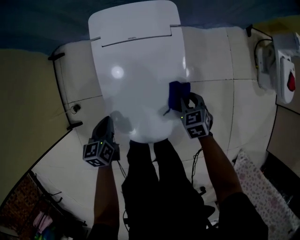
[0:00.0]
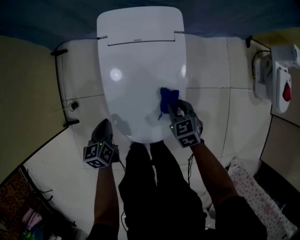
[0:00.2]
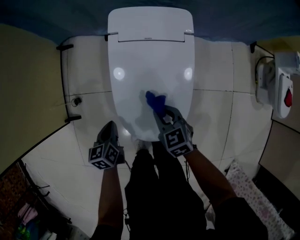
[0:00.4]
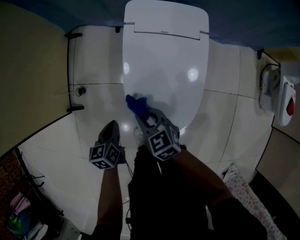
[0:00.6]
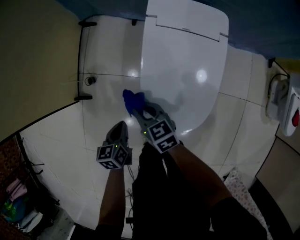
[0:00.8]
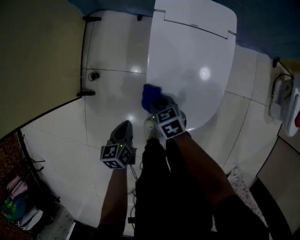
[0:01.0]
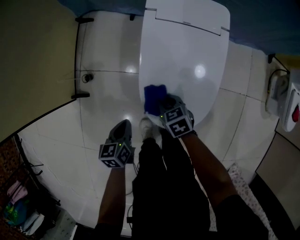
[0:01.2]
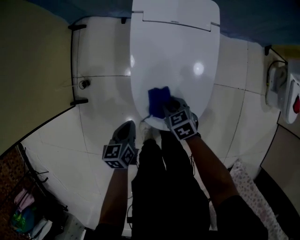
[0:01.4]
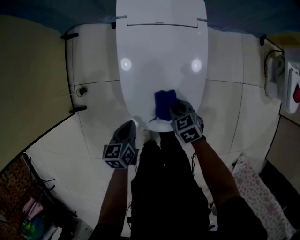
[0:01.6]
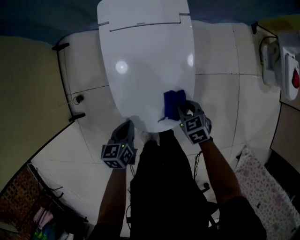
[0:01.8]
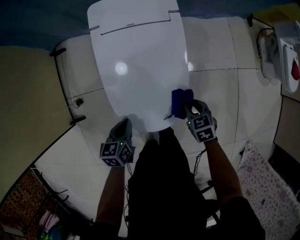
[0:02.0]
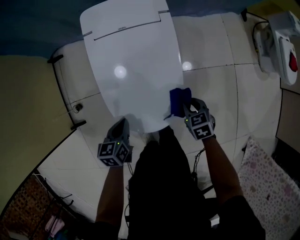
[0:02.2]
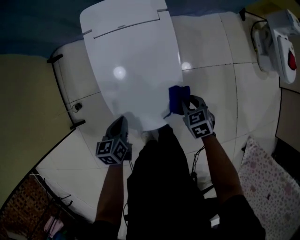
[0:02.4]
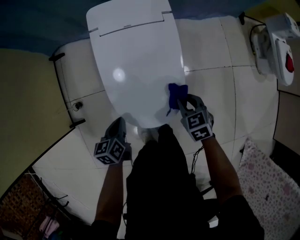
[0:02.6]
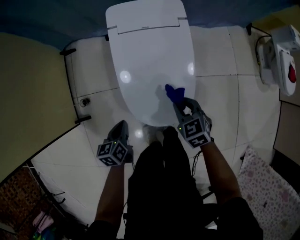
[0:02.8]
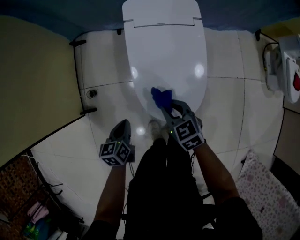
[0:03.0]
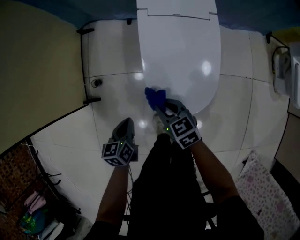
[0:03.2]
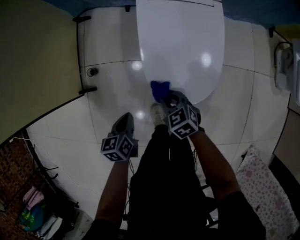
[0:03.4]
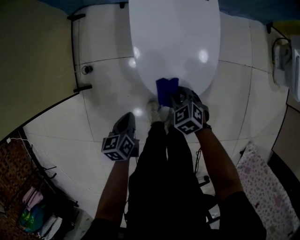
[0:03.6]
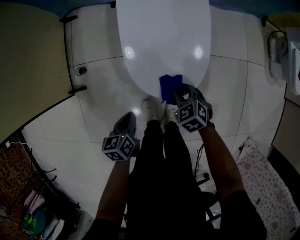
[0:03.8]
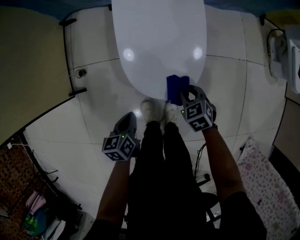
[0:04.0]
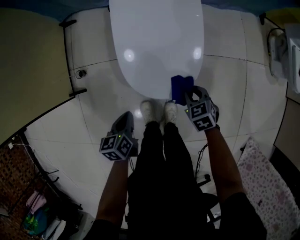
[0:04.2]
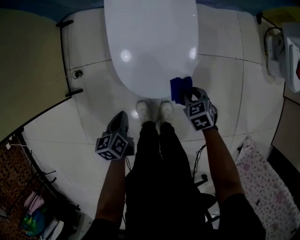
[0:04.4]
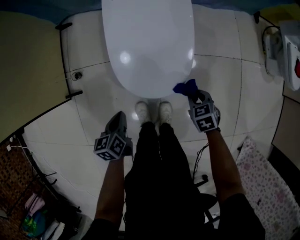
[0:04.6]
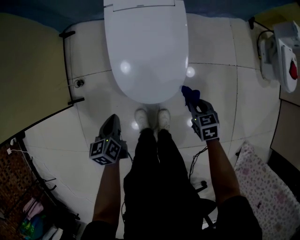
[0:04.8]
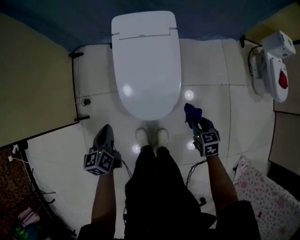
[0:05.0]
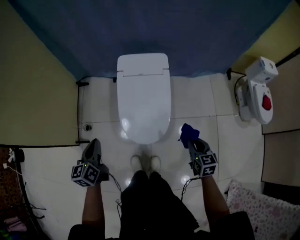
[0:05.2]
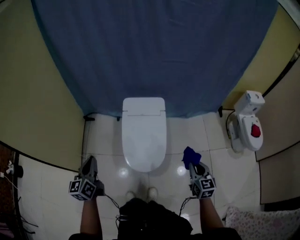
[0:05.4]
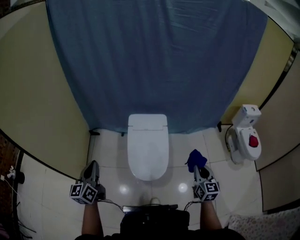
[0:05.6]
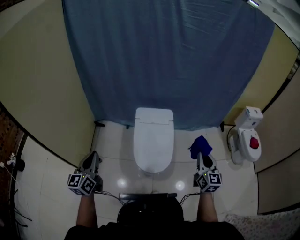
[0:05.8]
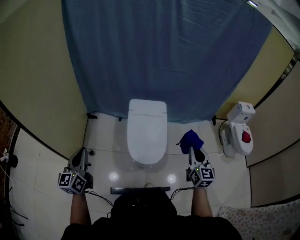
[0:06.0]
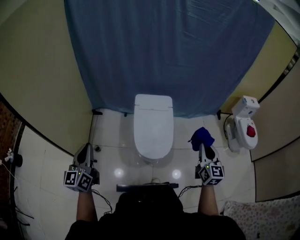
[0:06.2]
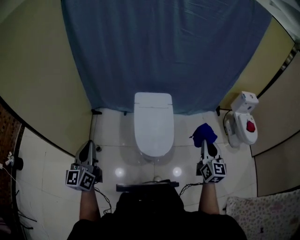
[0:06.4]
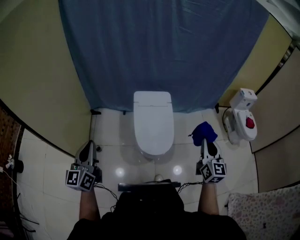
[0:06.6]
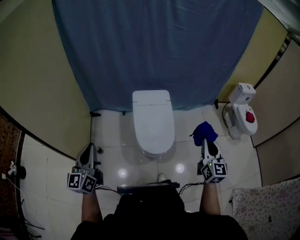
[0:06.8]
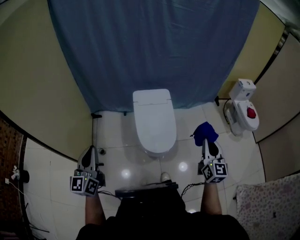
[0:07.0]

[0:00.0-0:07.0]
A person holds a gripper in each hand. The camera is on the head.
0:00.0 to 0:01.4: The right gripper moves about 10 cm upward and comes back, and changes its angle by roughly 20 degrees; the left gripper moves approximately 10 cm.
0:01.4 to 0:02.8: The right gripper shifts about 15 cm upward and to the right, while the left gripper travels to the right and back again, about 10 cm each way.
0:02.8 to 0:04.2: The left gripper travels backward by some 10 cm. Meanwhile the right gripper shifts about 15 cm downward and backward, and travels to the left and back again, approximately 20 cm each way.
0:04.2 to 0:05.6: Both grippers move upward, some 50 cm. The right gripper tilts its fingers approximately 50 degrees upward; the left gripper tips its fingers upward by some 50 degrees.
0:05.6 to 0:07.0: The right gripper goes some 15 cm backward, to the left and upward. The left gripper shifts approximately 15 cm to the left and backward.

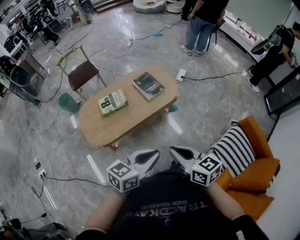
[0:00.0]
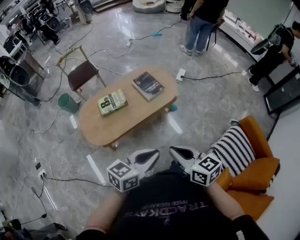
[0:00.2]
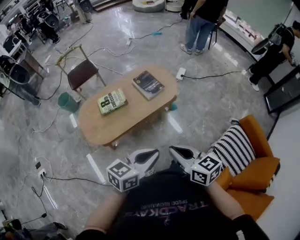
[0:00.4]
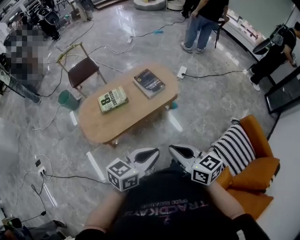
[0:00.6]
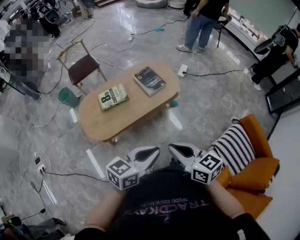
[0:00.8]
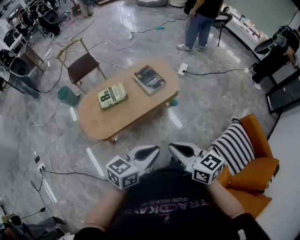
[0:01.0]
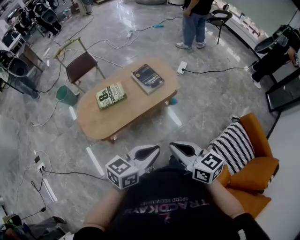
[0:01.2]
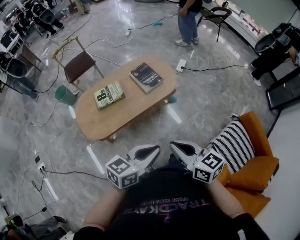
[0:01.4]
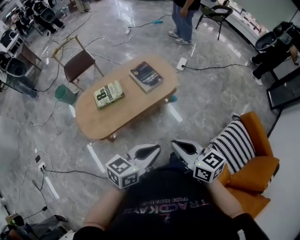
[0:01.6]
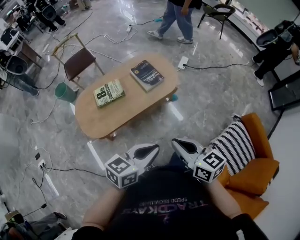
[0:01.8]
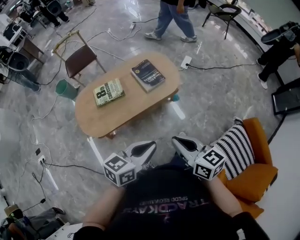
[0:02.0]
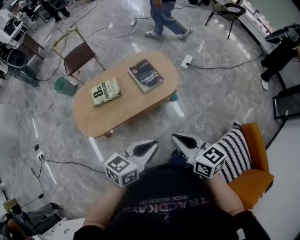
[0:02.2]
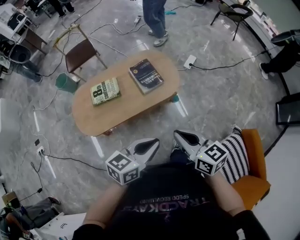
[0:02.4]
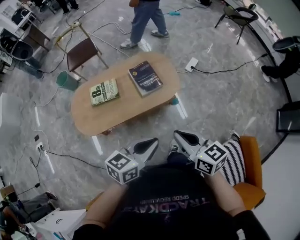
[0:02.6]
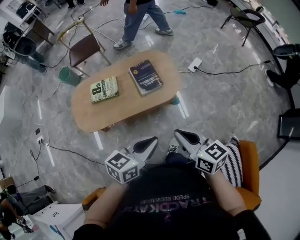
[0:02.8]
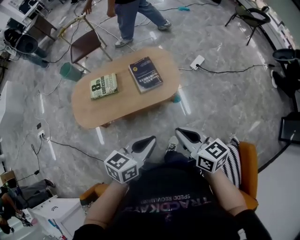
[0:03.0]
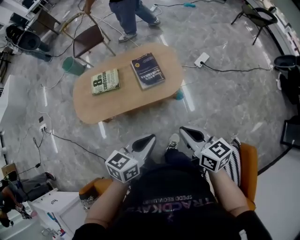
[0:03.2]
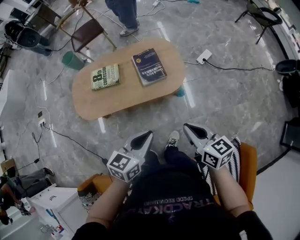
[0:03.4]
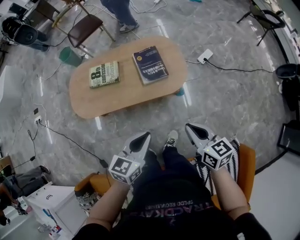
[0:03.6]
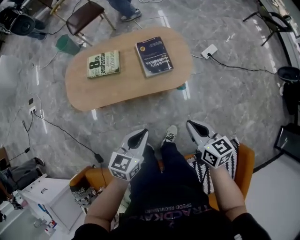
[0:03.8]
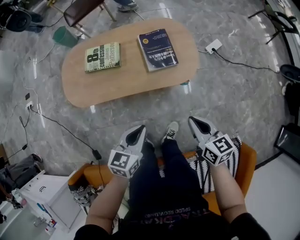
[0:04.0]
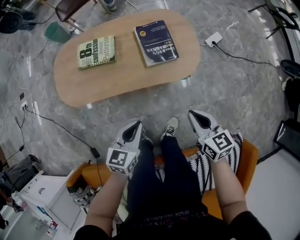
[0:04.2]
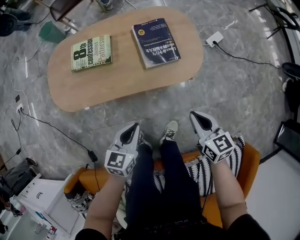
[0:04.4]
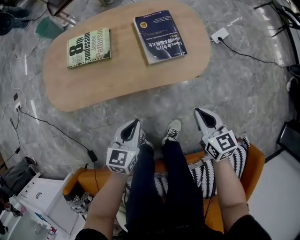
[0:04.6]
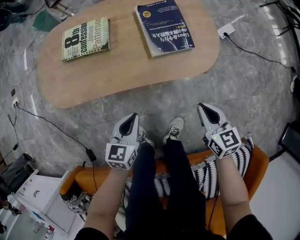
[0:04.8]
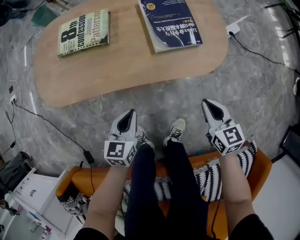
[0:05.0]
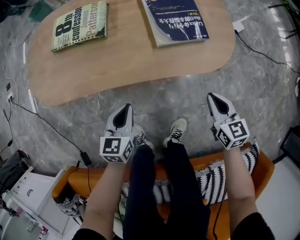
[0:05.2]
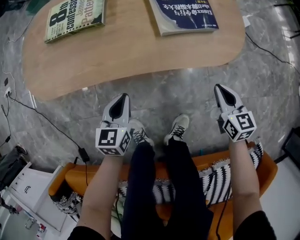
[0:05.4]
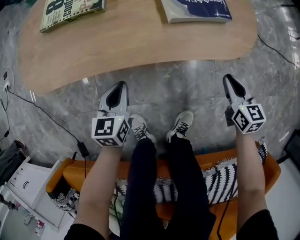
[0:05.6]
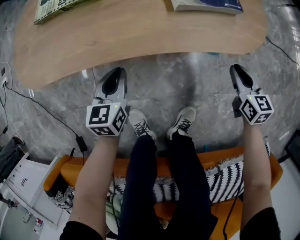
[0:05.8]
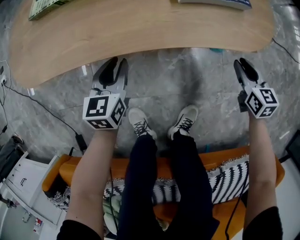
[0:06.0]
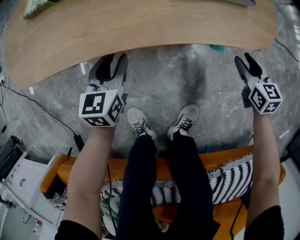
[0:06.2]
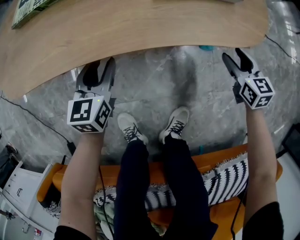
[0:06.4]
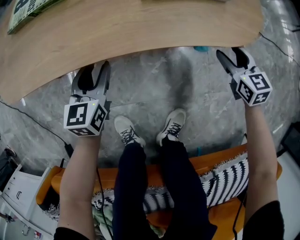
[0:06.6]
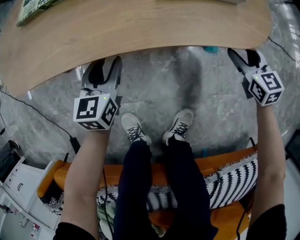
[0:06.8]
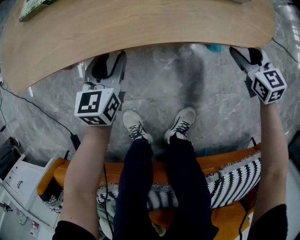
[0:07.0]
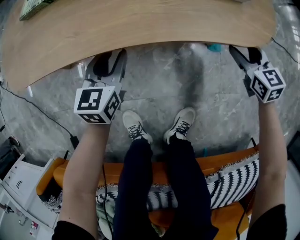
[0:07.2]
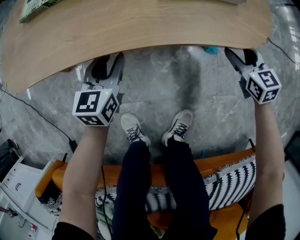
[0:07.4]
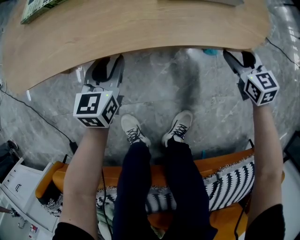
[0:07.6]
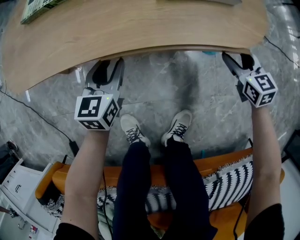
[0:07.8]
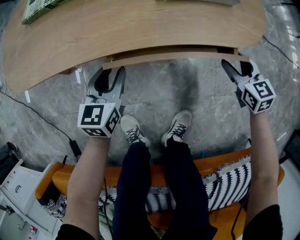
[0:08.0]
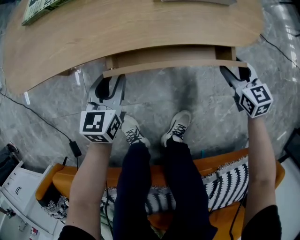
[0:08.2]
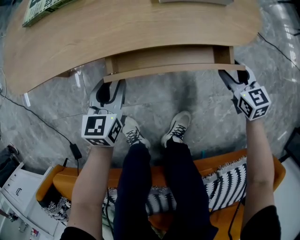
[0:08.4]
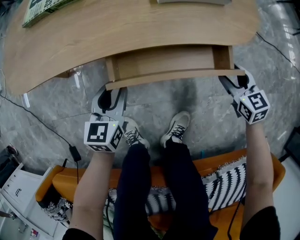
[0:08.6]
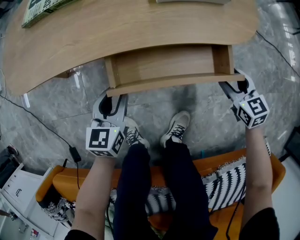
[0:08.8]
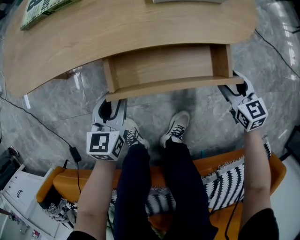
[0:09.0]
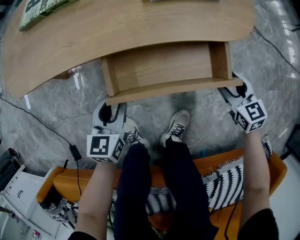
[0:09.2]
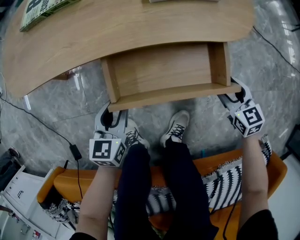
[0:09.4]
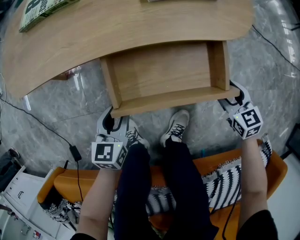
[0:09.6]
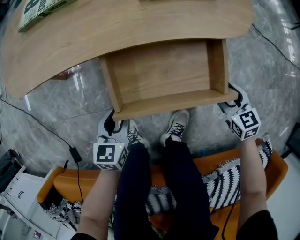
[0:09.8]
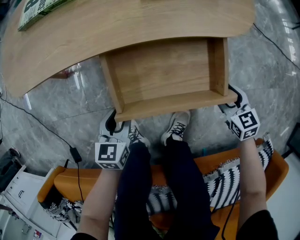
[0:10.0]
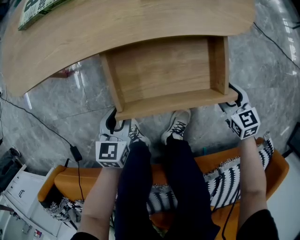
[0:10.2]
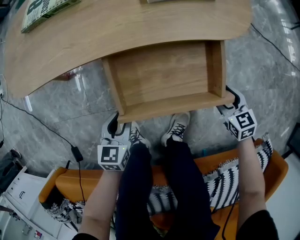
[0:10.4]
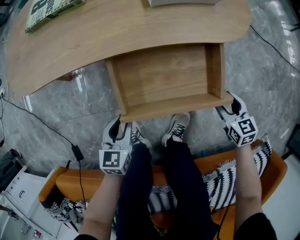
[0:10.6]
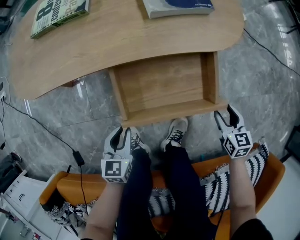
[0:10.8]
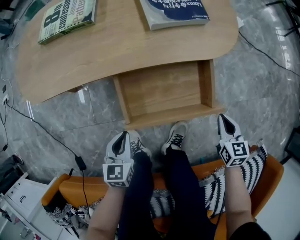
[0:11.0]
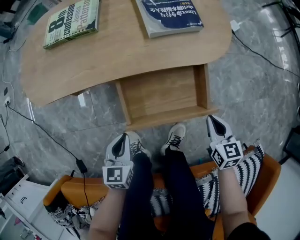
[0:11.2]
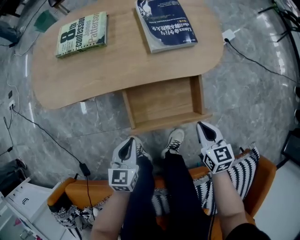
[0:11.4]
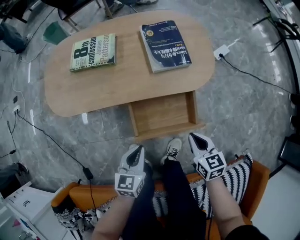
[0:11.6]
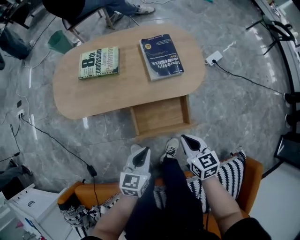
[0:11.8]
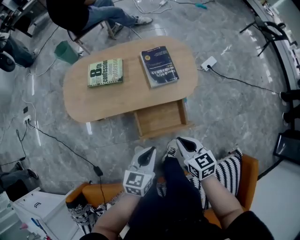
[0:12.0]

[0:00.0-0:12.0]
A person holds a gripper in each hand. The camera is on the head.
0:00.0 to 0:01.6: The right gripper ends up approximately 5 cm from where it was.
0:01.6 to 0:03.0: The two grippers go approximately 25 cm forward and to the right. The left gripper rotates some 20 degrees.
0:03.0 to 0:04.4: The left gripper shifts some 30 cm downward and to the left, and rotates about 20 degrees, while the right gripper travels downward by about 30 cm.
0:04.4 to 0:06.0: Both grippers move downward, approximately 35 cm. The right gripper opens; the left gripper opens its fingers.
0:06.0 to 0:07.6: The right gripper opens.
0:07.6 to 0:09.0: Both grippers move backward, about 10 cm.
0:09.0 to 0:10.4: Both grippers move backward, some 10 cm.
0:10.4 to 0:12.0: The two grippers go some 40 cm upward. The right gripper closes up. The left gripper closes its fingers.

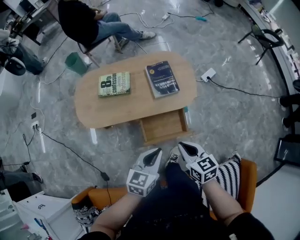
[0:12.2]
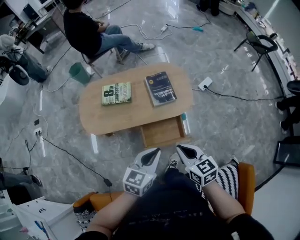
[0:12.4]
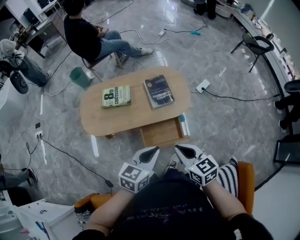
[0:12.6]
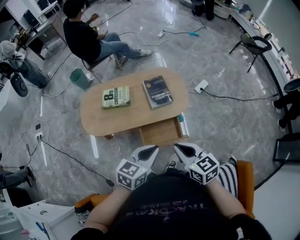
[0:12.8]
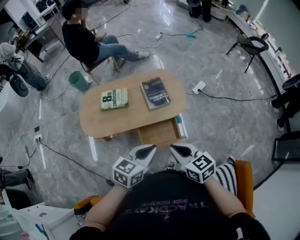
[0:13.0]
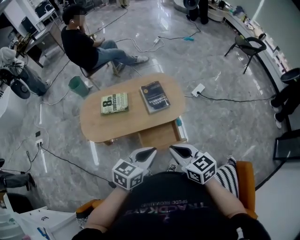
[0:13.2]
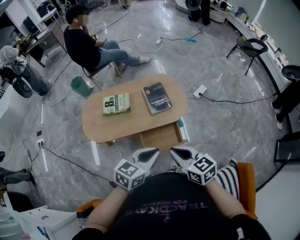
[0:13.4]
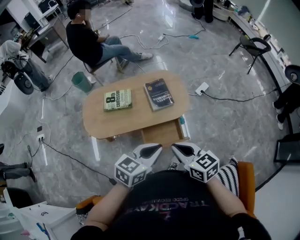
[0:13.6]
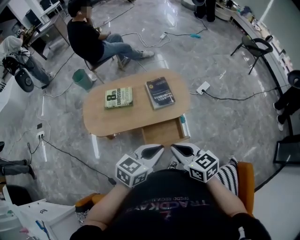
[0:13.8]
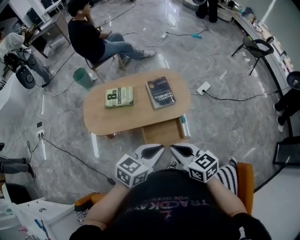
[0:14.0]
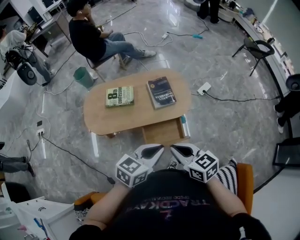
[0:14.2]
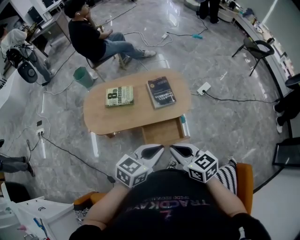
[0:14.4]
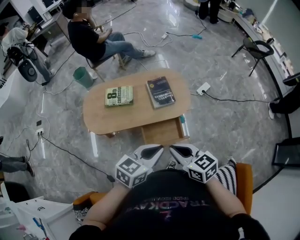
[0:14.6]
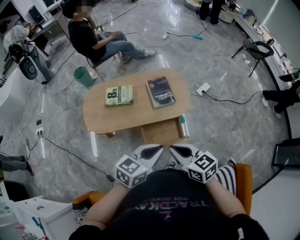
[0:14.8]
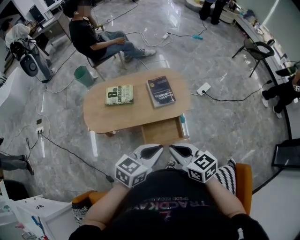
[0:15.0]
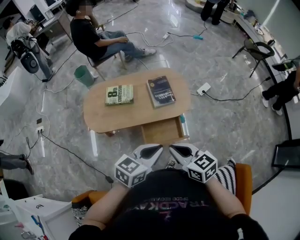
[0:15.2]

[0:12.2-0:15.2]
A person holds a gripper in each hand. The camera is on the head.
0:12.2 to 0:13.8: Both grippers move upward, roughly 15 cm.
0:13.8 to 0:15.2: The grippers make only small movements.

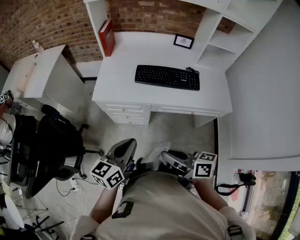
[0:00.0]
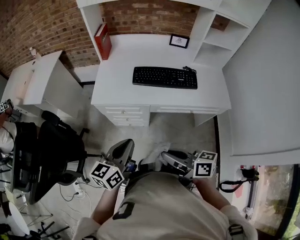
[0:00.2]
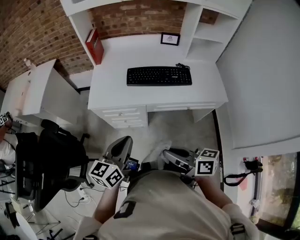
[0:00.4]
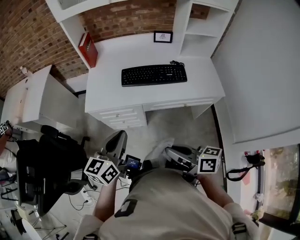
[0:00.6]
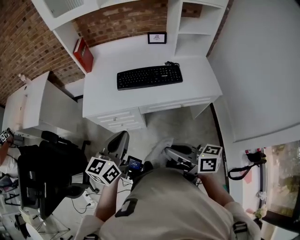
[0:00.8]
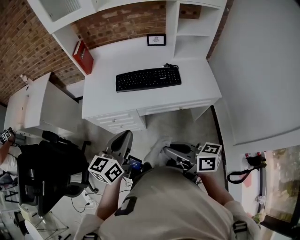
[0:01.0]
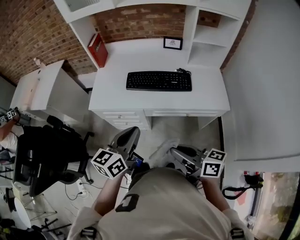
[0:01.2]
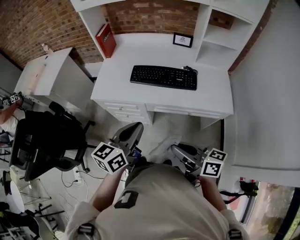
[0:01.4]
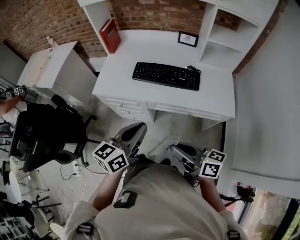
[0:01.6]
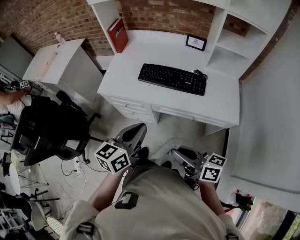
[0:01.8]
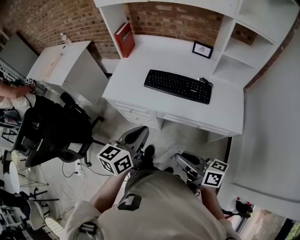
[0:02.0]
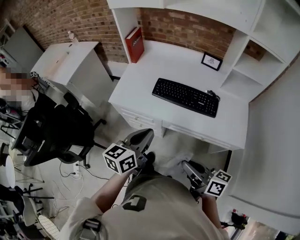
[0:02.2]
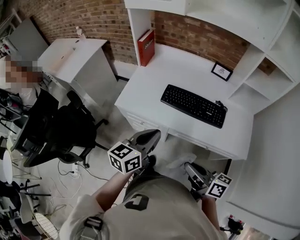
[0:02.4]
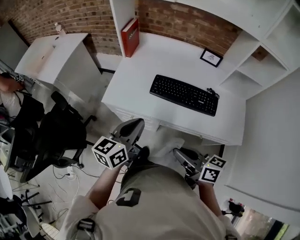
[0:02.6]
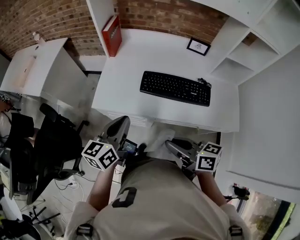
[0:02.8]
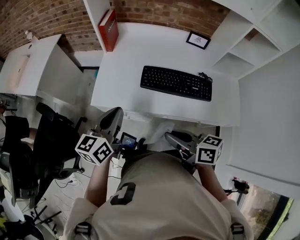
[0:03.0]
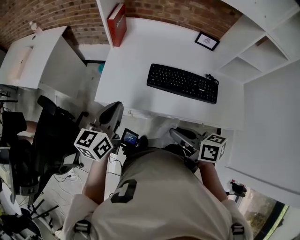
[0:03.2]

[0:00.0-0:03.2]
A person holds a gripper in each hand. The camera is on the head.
0:00.0 to 0:01.6: Both grippers travel together to the right, some 15 cm.
0:01.6 to 0:03.2: Both grippers travel together forward and to the left, about 30 cm.
